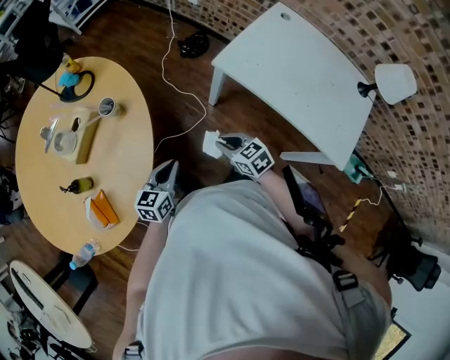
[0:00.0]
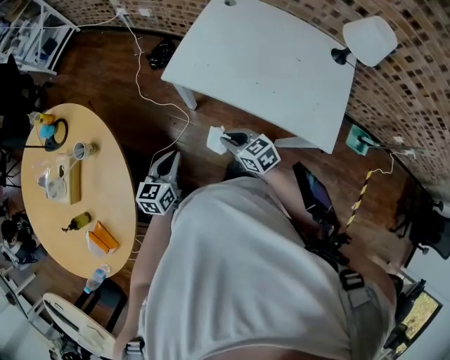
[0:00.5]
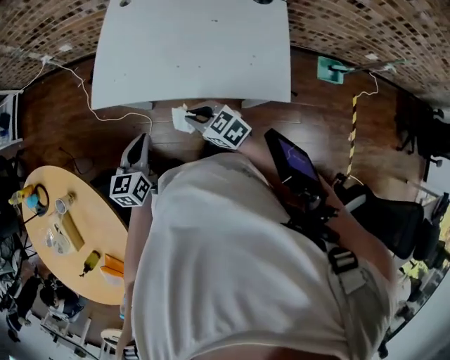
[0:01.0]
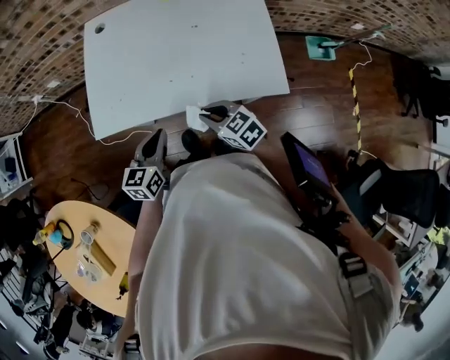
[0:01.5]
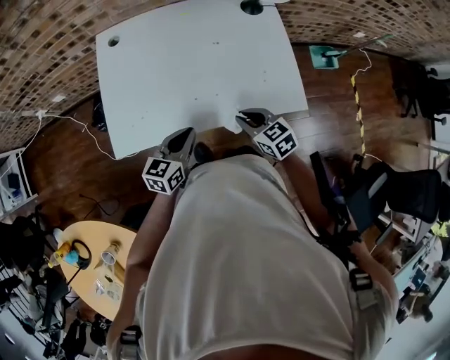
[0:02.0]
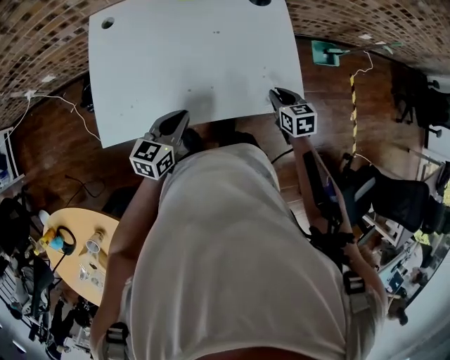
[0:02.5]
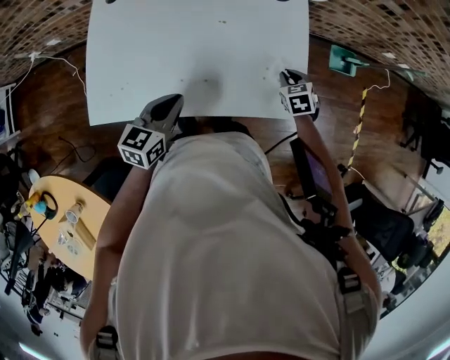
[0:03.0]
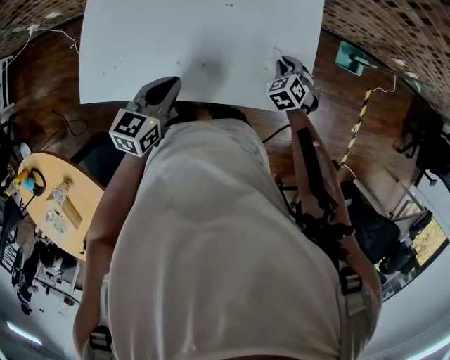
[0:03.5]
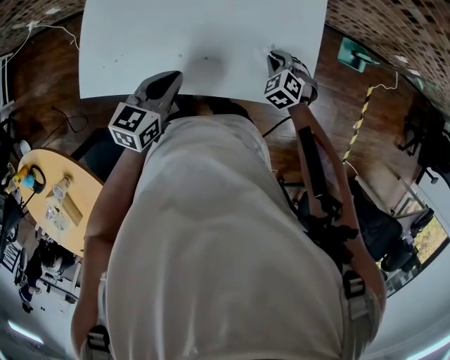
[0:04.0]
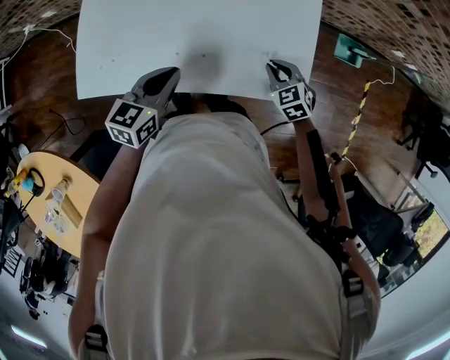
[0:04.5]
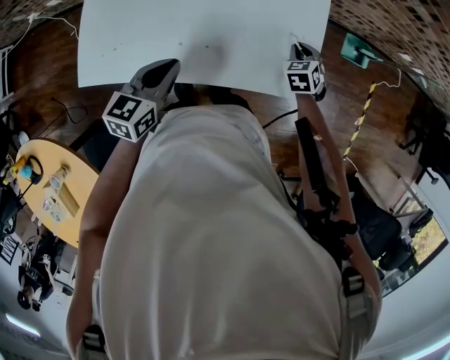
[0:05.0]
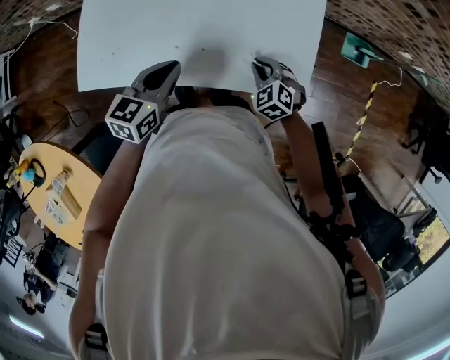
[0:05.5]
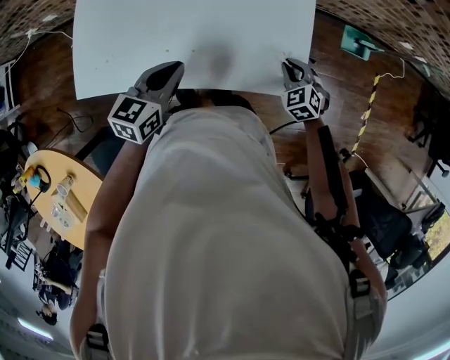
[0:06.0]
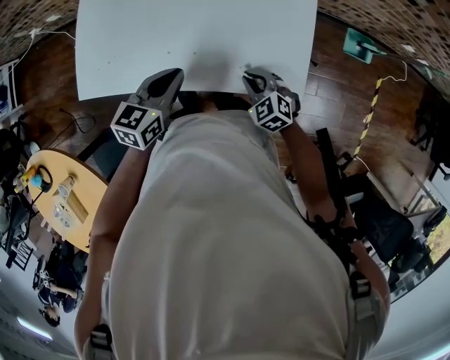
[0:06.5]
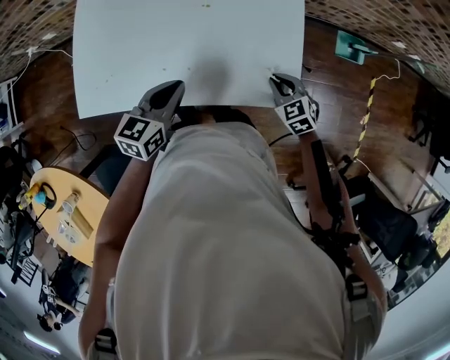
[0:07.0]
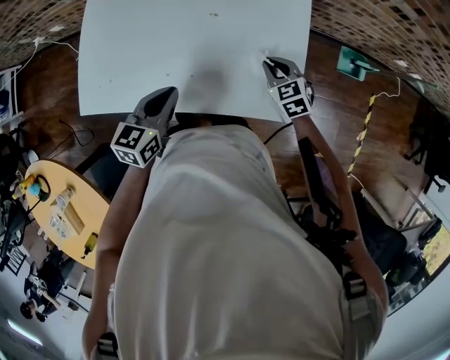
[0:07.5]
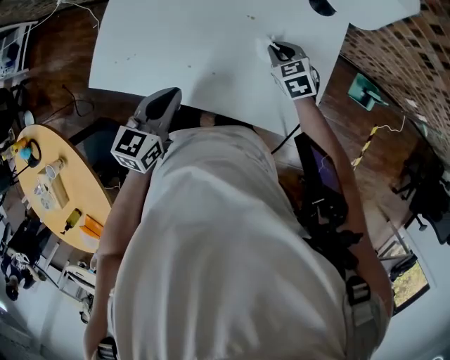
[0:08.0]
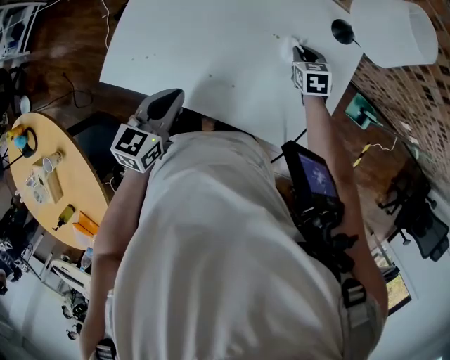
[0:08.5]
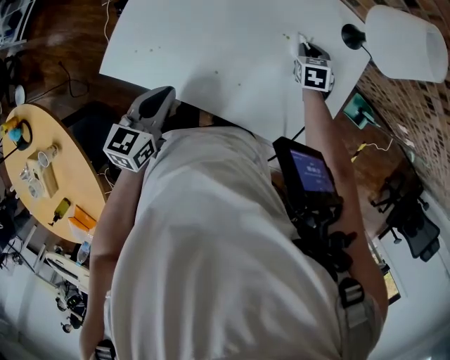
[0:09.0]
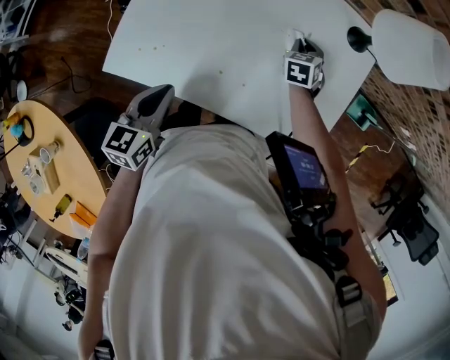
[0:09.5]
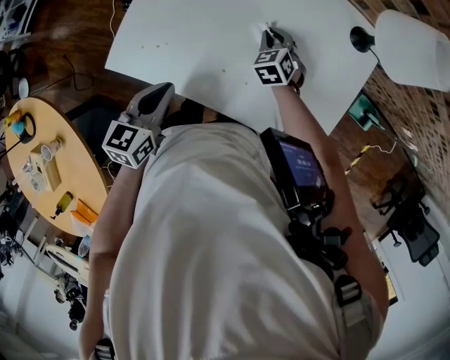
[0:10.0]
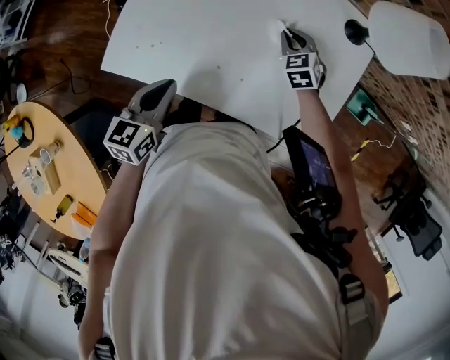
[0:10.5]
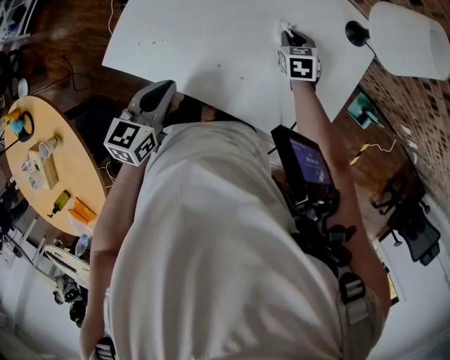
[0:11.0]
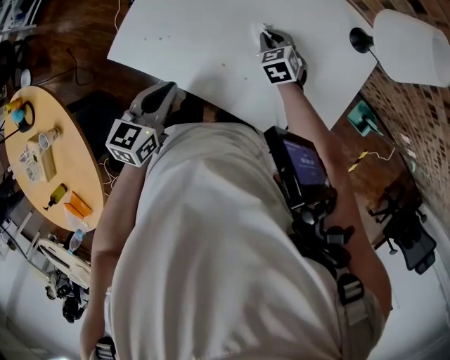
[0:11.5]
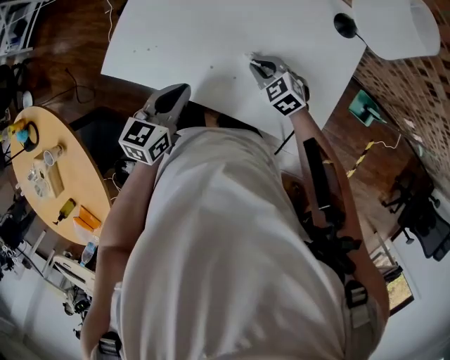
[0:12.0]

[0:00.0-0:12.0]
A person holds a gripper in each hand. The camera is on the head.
0:00.0 to 0:02.0: The two grippers travel together, about 40 cm. The left gripper rotates about 60 degrees. The right gripper rotates some 50 degrees.
0:02.0 to 0:04.0: The left gripper goes some 10 cm forward. Meanwhile the right gripper is displaced forward, to the right and downward by roughly 25 cm, and rotates around the line of its fingers by roughly 40 degrees, counterclockwise from behind.
0:04.0 to 0:06.0: The right gripper goes left and right, about 10 cm each way, reversing 2 times. The left gripper ends up some 5 cm from where it was.
0:06.0 to 0:08.0: The right gripper is displaced forward and to the left by about 20 cm, while the left gripper heads to the left, covering roughly 5 cm.
0:08.0 to 0:10.0: The two grippers go about 15 cm to the left.
0:10.0 to 0:12.0: The right gripper is displaced backward by roughly 15 cm, and swivels about 30 degrees. Meanwhile the left gripper shifts approximately 5 cm to the right.

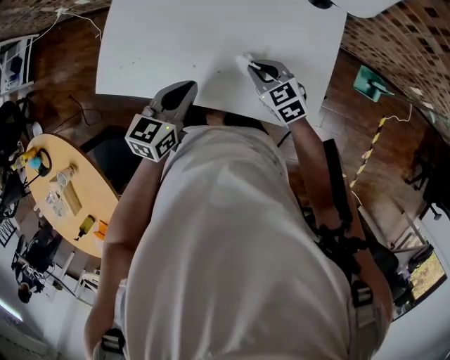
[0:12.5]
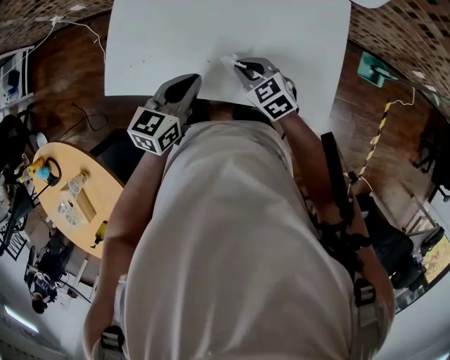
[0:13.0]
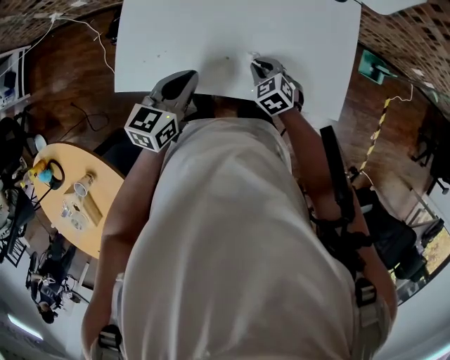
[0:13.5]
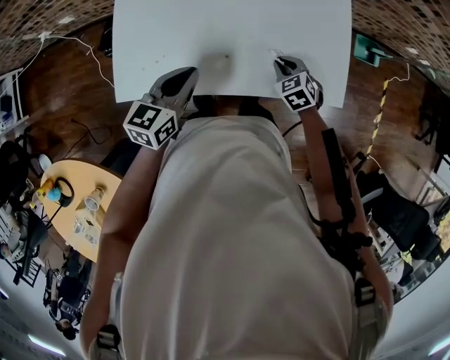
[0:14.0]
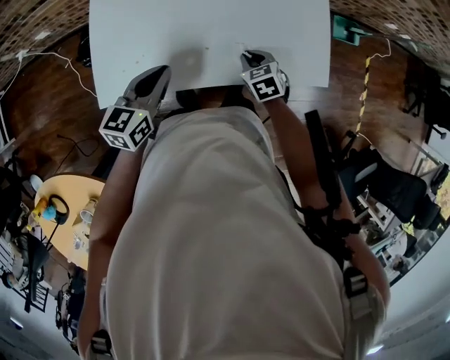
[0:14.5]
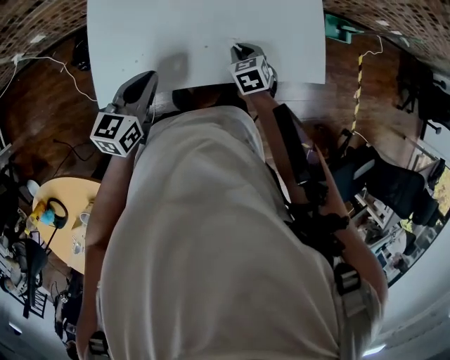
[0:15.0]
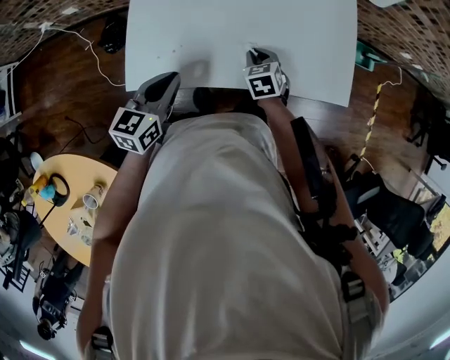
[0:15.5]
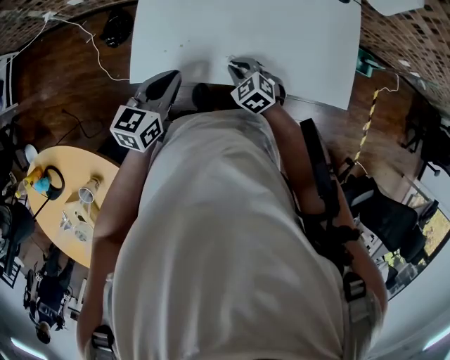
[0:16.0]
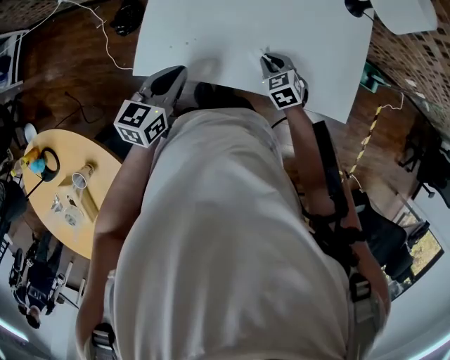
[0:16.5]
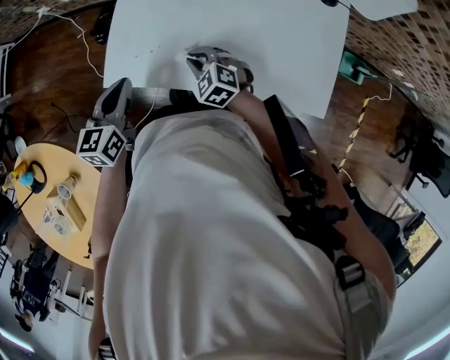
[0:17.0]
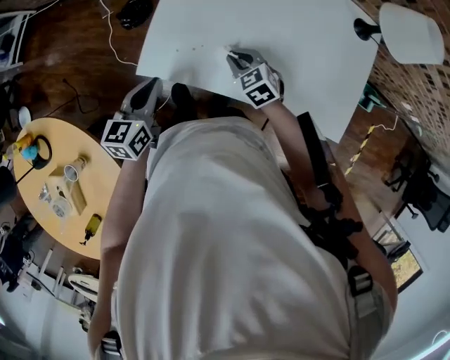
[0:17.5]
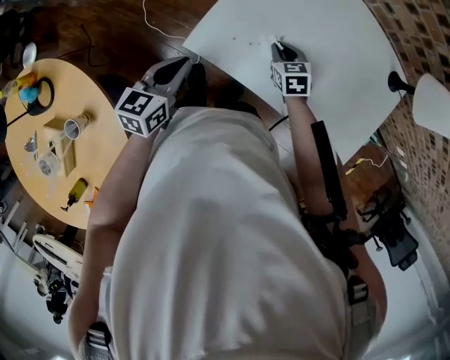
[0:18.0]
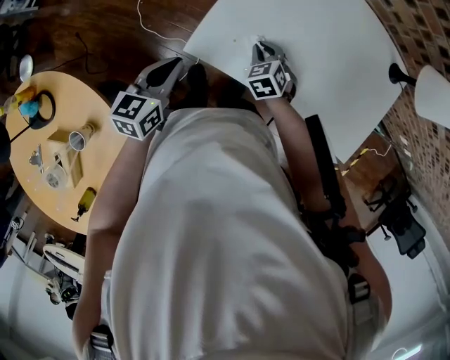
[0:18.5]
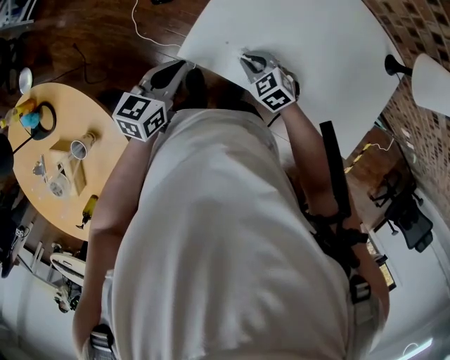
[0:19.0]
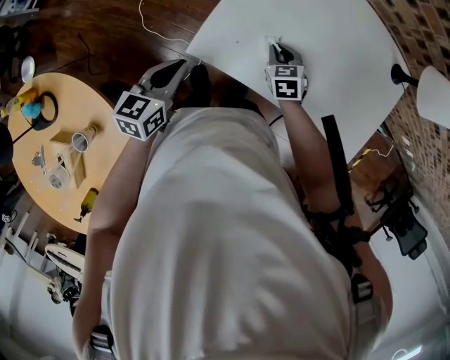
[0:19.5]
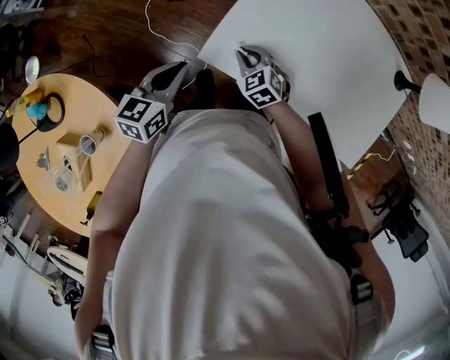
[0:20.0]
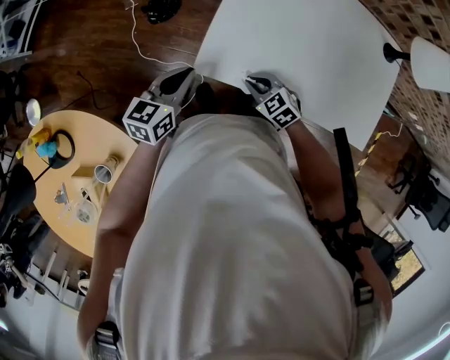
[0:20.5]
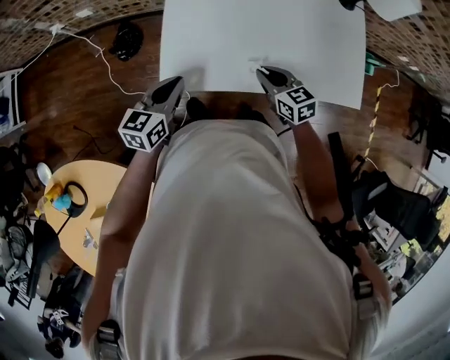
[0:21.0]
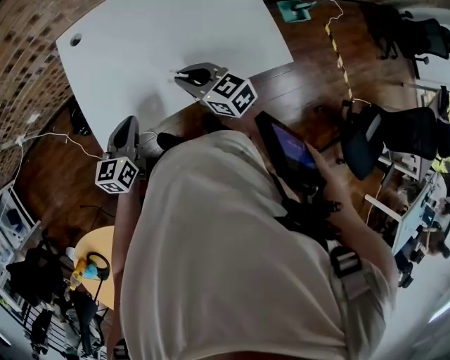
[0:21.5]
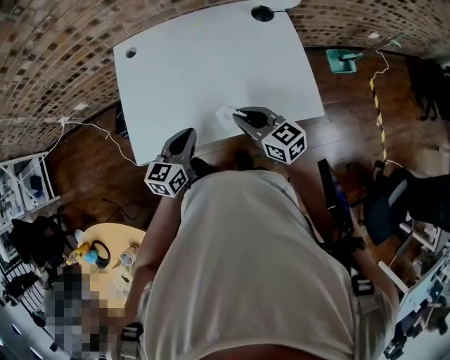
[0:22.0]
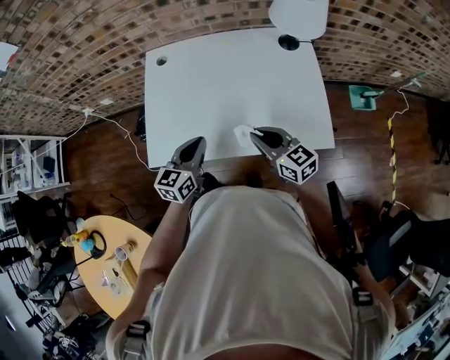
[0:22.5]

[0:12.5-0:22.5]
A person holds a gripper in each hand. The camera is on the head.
0:12.5 to 0:14.5: The left gripper ends up roughly 15 cm from where it was. Meanwhile the right gripper moves some 10 cm, and turns by about 30 degrees.
0:14.5 to 0:16.5: The two grippers go some 5 cm to the left. The right gripper rotates about 20 degrees.
0:16.5 to 0:18.5: Both grippers move to the left, approximately 20 cm.
0:18.5 to 0:20.5: The right gripper swings left and right, roughly 15 cm each way, with 2 reversals, and swivels roughly 20 degrees.
0:20.5 to 0:22.5: The left gripper shifts by about 30 cm. The right gripper shifts by approximately 35 cm, and tilts its fingers approximately 40 degrees upward.

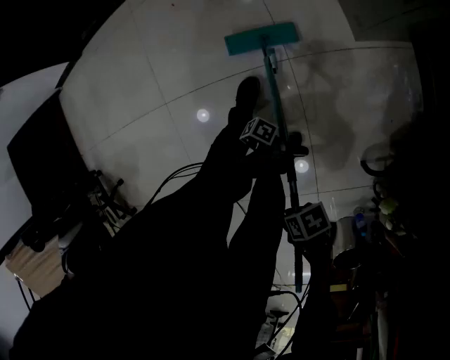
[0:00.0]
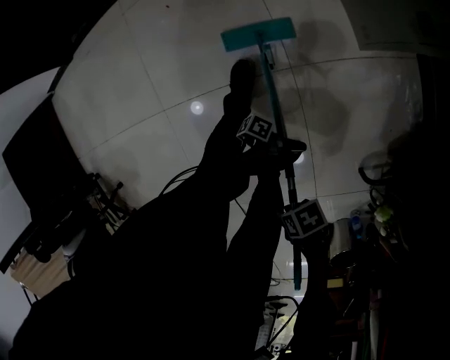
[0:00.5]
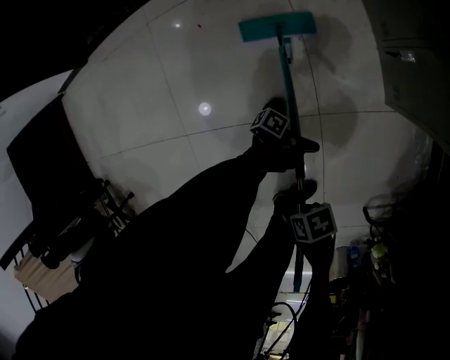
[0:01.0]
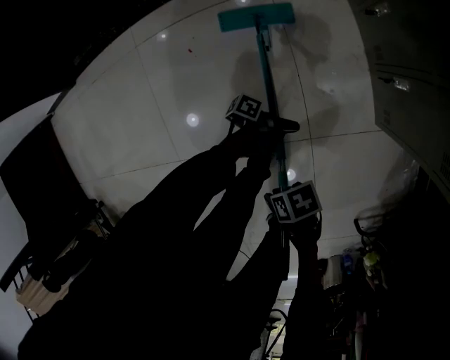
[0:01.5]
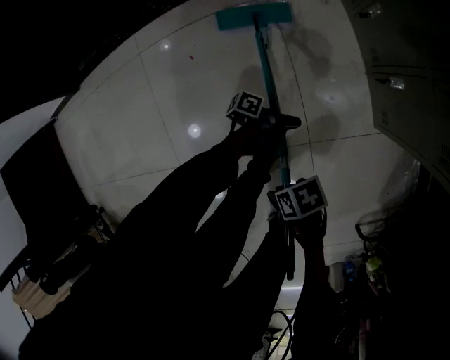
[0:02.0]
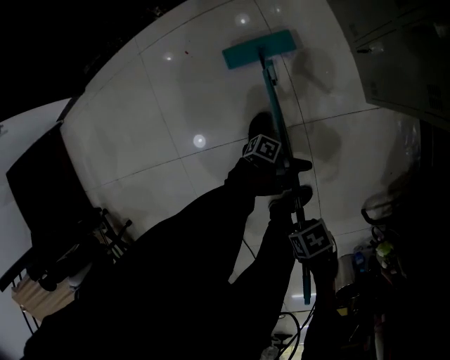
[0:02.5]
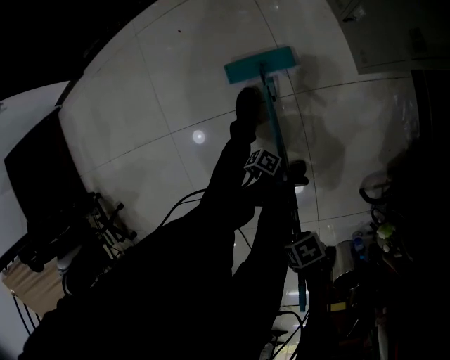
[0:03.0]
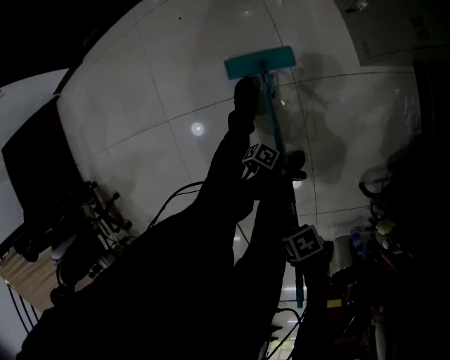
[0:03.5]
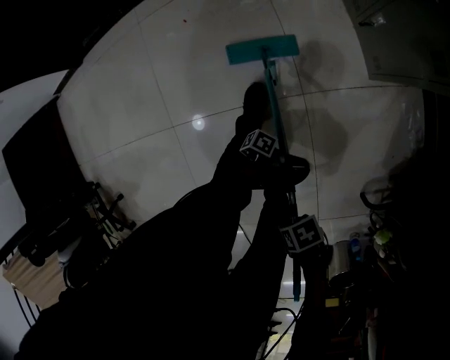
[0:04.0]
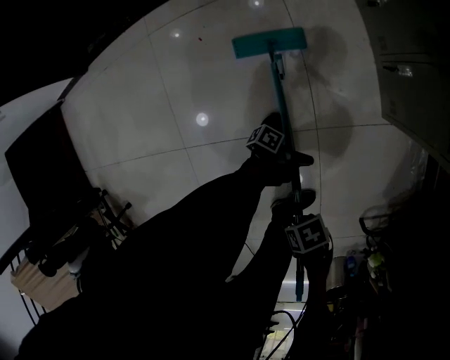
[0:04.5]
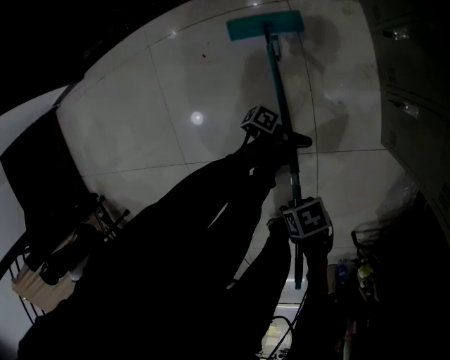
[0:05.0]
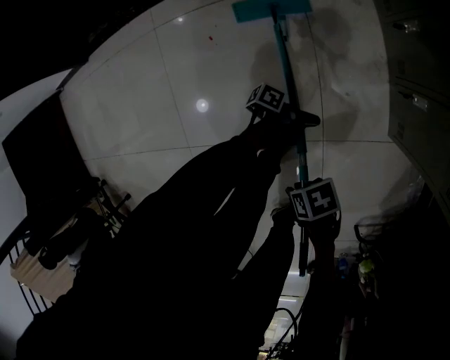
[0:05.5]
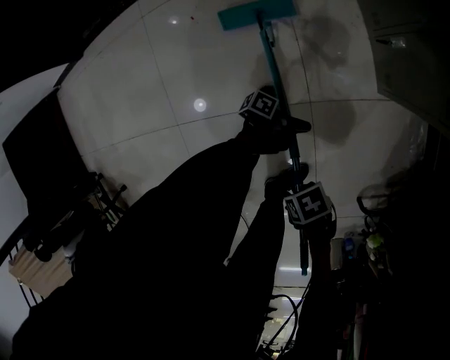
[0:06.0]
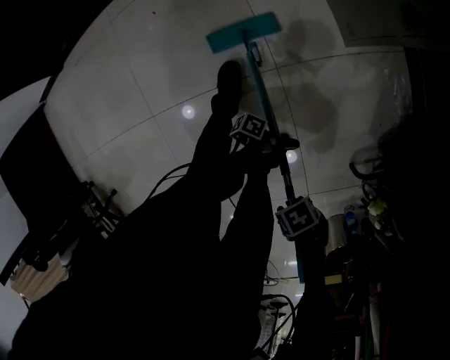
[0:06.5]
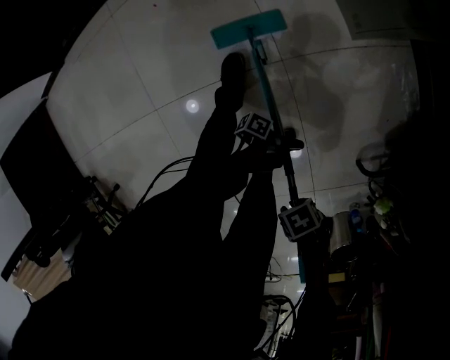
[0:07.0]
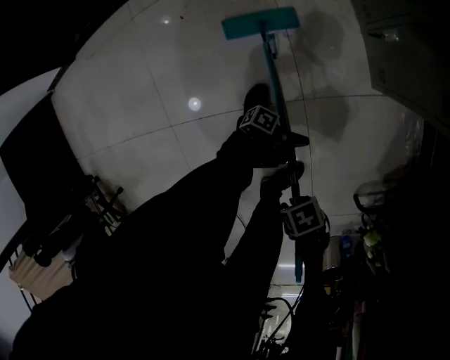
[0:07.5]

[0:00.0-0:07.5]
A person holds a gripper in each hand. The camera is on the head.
0:00.0 to 0:02.0: The two grippers travel together, backward and to the right, approximately 50 cm.
0:02.0 to 0:04.0: The two grippers go roughly 35 cm forward and to the left.
0:04.0 to 0:05.5: The two grippers go roughly 35 cm backward and to the right.
0:05.5 to 0:07.5: The left gripper heads forward and to the left, covering about 25 cm. The right gripper shifts some 25 cm forward, to the left and downward.
